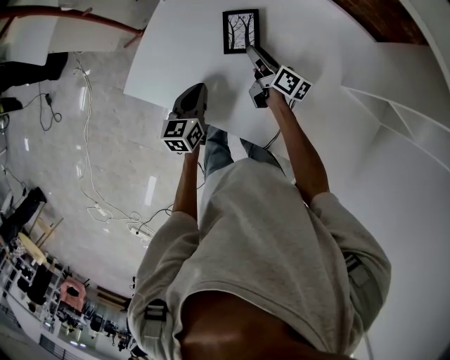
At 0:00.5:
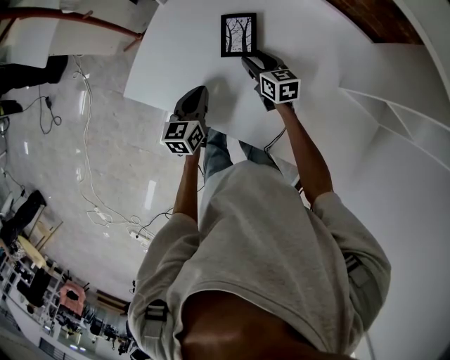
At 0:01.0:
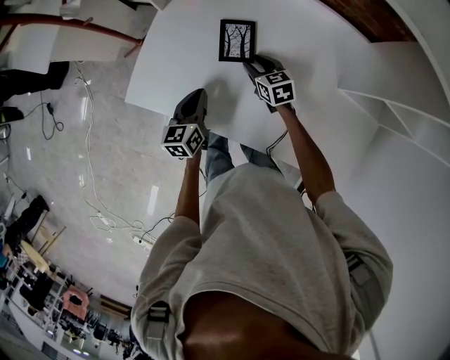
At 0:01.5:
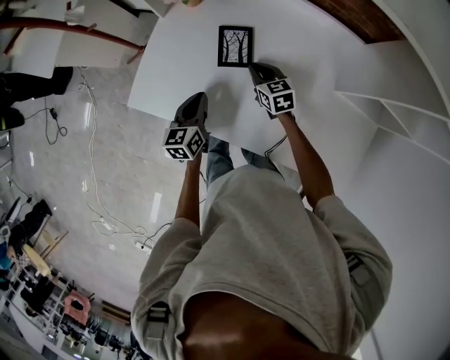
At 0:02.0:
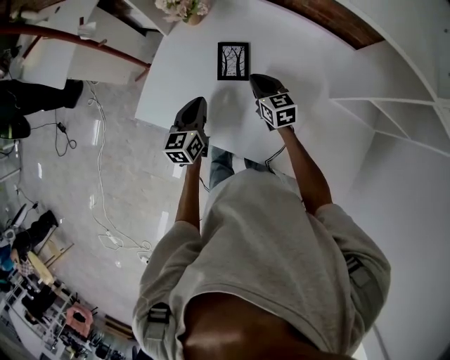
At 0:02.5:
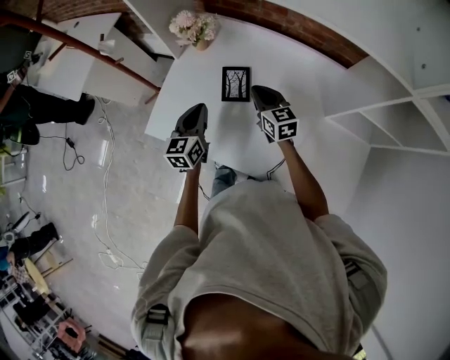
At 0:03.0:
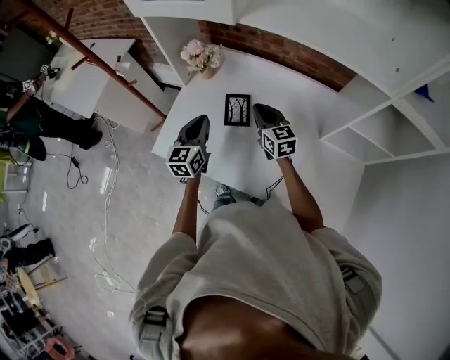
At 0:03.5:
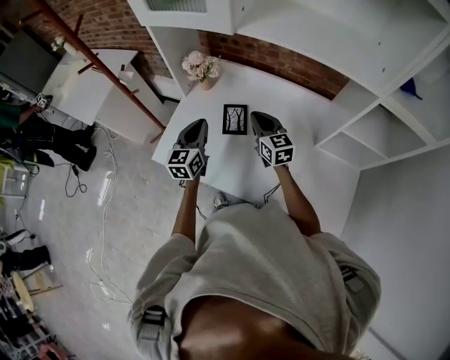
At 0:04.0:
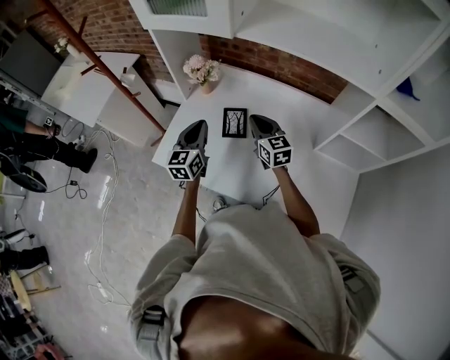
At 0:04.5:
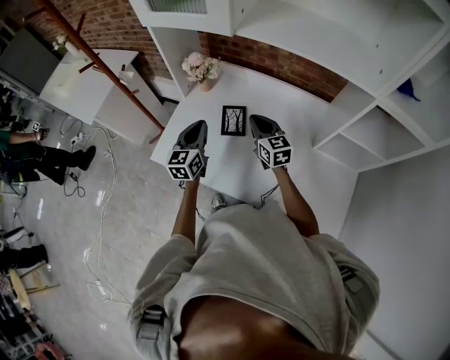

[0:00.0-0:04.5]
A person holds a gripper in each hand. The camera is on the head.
0:00.0 to 0:02.0: The left gripper travels upward by about 5 cm.
0:02.0 to 0:04.5: The left gripper is displaced upward by about 15 cm.

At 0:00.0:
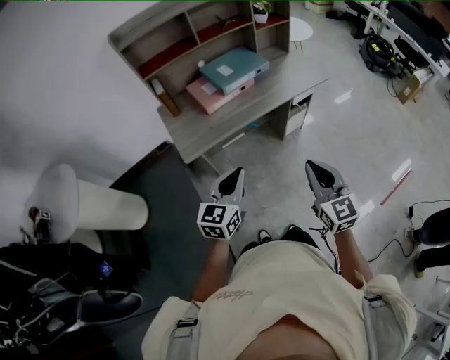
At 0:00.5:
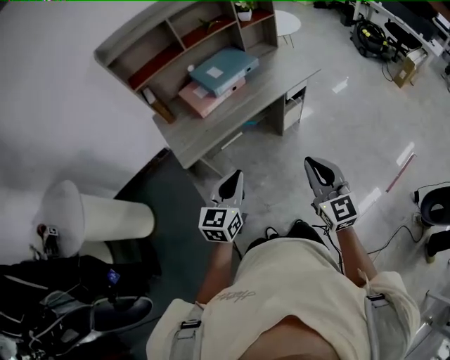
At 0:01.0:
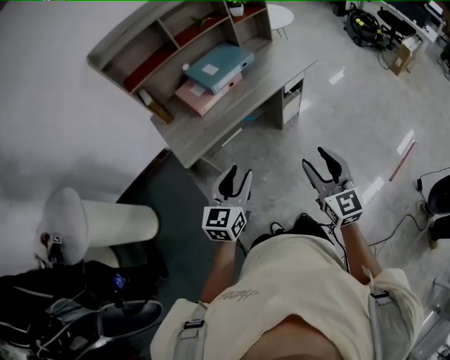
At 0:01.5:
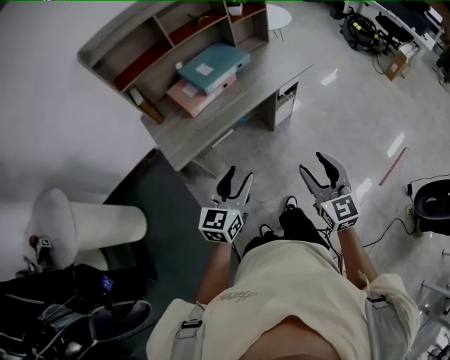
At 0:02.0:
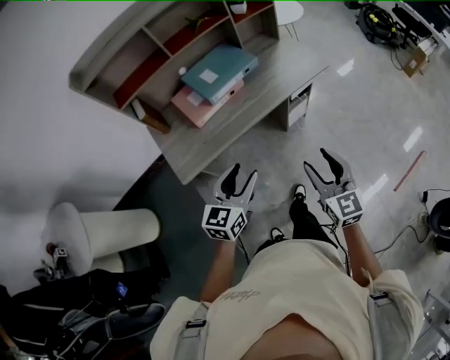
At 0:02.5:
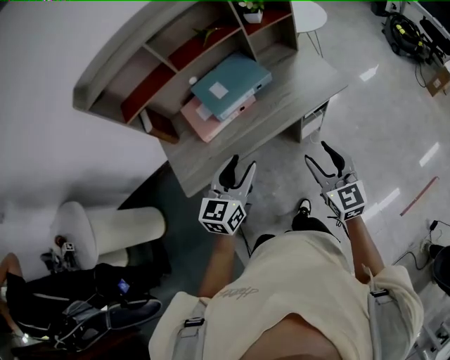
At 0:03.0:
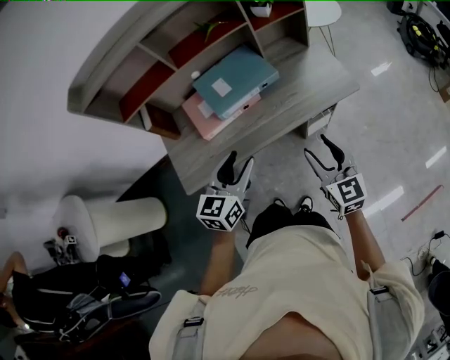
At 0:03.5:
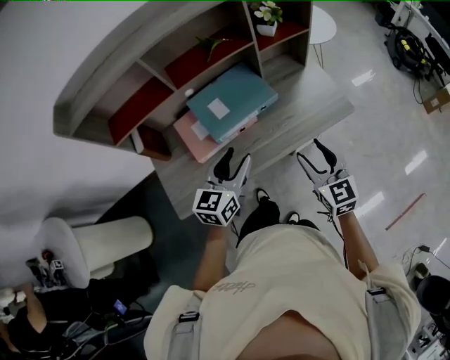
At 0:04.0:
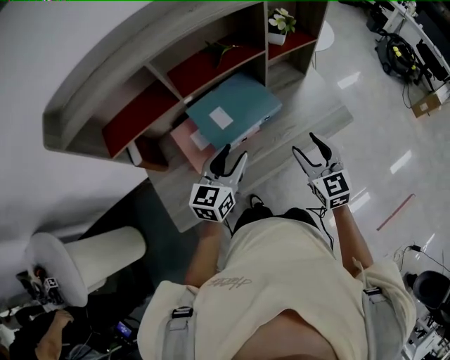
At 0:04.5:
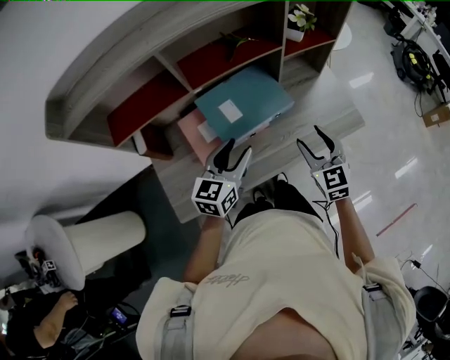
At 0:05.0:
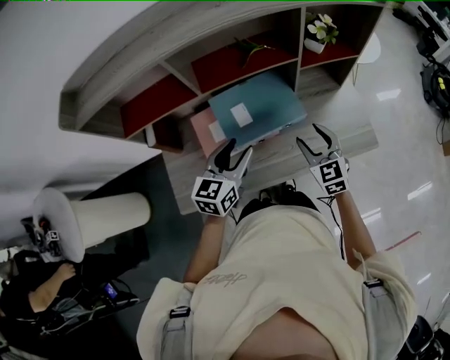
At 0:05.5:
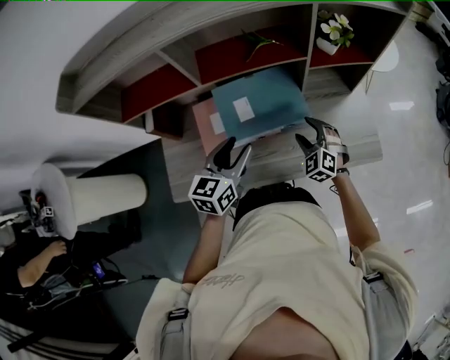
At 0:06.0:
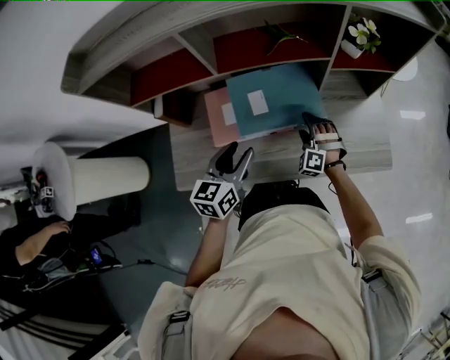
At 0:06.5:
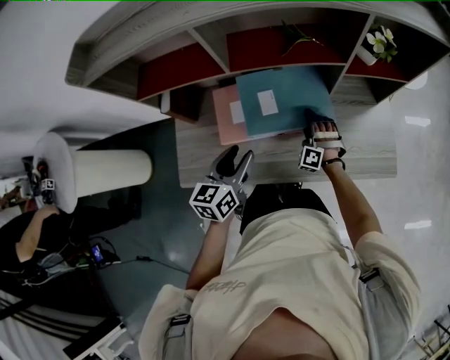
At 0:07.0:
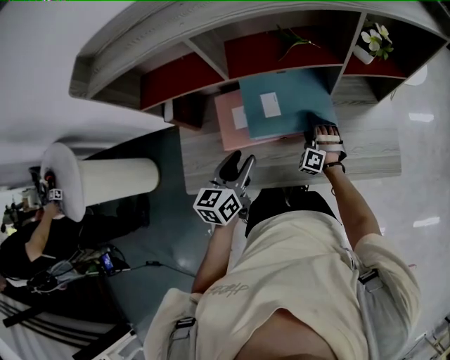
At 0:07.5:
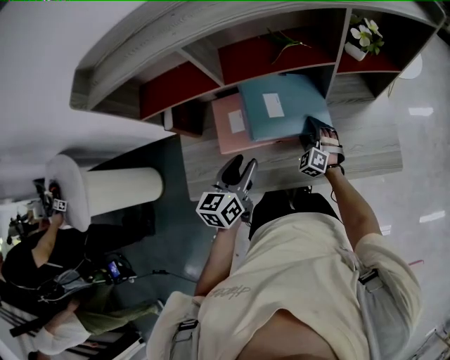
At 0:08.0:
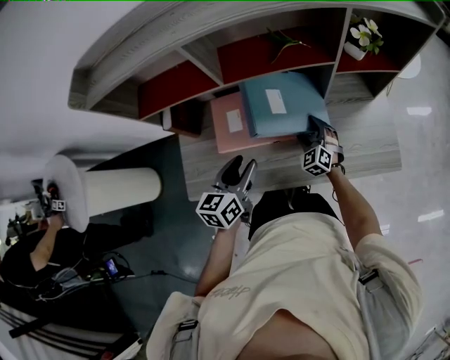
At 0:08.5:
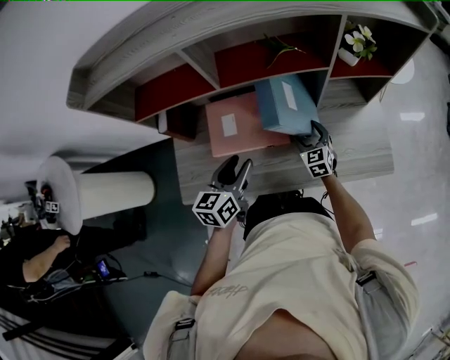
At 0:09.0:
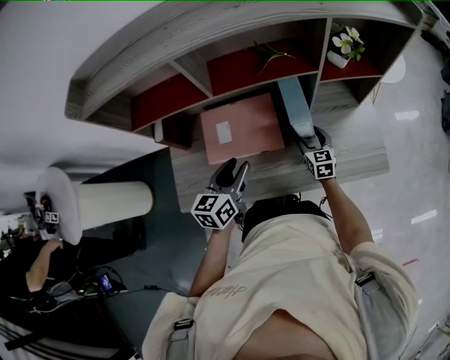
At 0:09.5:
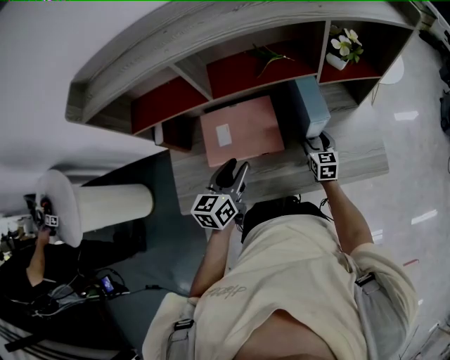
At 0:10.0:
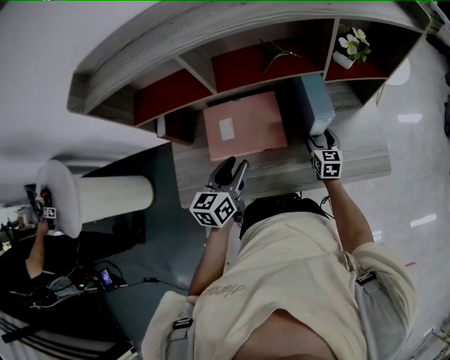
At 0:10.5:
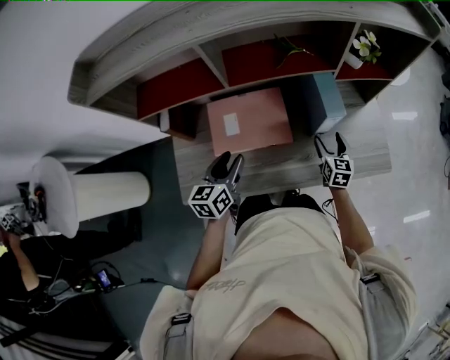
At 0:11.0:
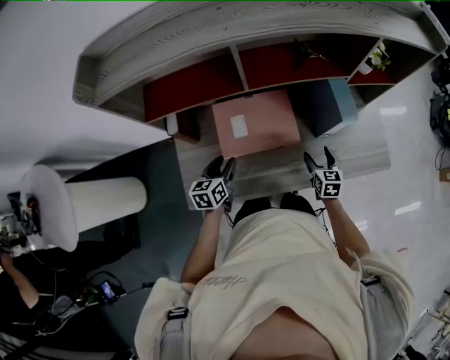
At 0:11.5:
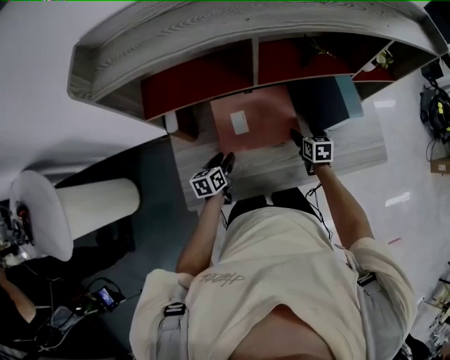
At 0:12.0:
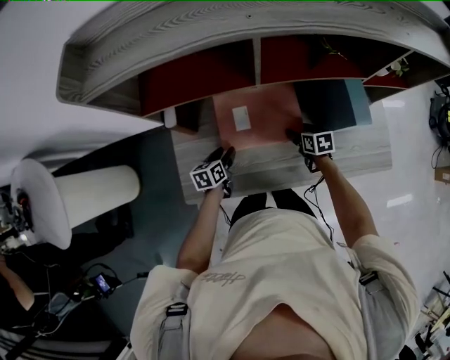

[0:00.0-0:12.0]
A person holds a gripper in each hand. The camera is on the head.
0:00.0 to 0:02.0: Both grippers move forward and to the right, approximately 10 cm. The left gripper opens its fingers. Meanwhile the right gripper opens.
0:02.0 to 0:04.0: The two grippers go approximately 35 cm forward.
0:04.0 to 0:06.0: The left gripper rotates about 30 degrees; the right gripper shifts roughly 25 cm downward and forward, and rotates around the line of its fingers by about 70 degrees, counterclockwise from behind.
0:06.0 to 0:08.0: The right gripper rotates roughly 30 degrees.
0:08.0 to 0:10.0: The right gripper moves to the right, roughly 10 cm, and rolls clockwise, seen from behind, by approximately 50 degrees.
0:10.0 to 0:12.0: The right gripper shifts about 15 cm to the left, and rotates roughly 30 degrees. The left gripper moves downward and to the left, some 25 cm, and rotates approximately 30 degrees.

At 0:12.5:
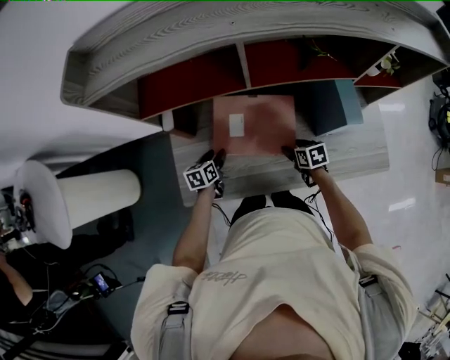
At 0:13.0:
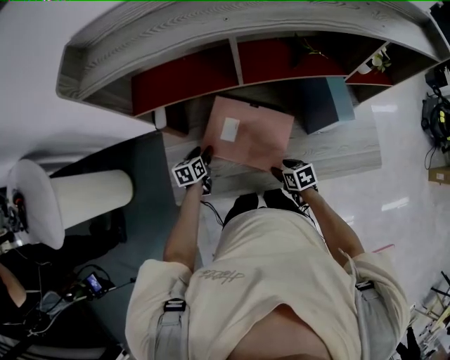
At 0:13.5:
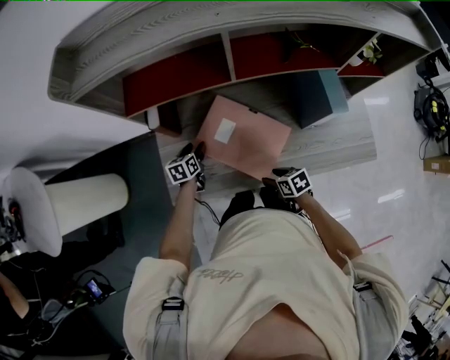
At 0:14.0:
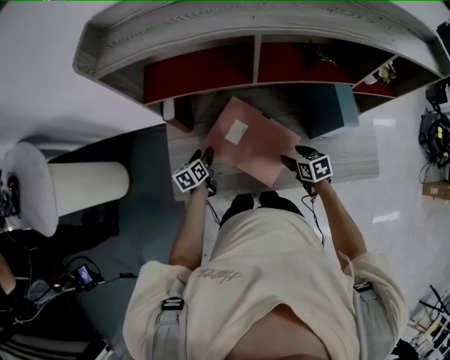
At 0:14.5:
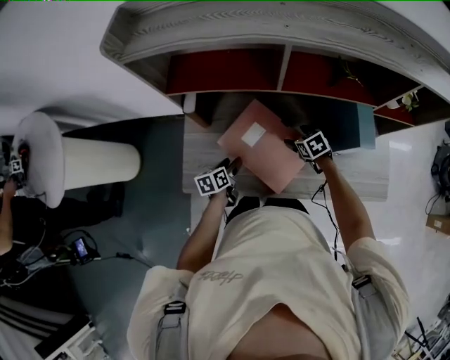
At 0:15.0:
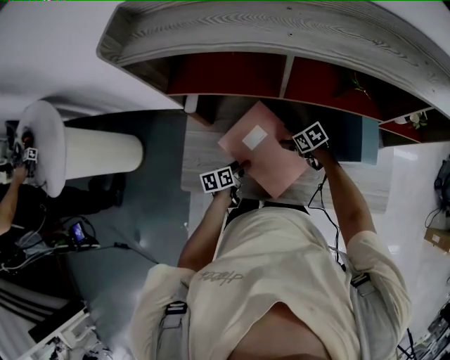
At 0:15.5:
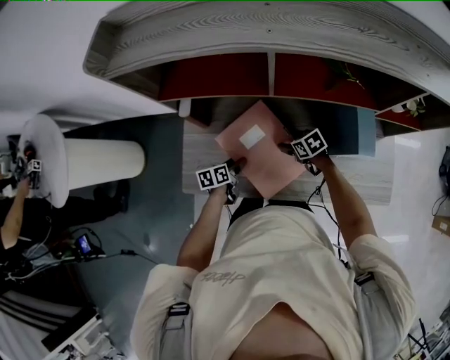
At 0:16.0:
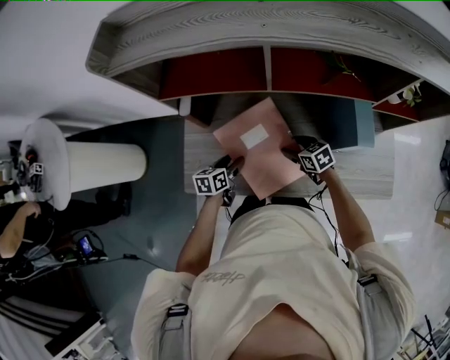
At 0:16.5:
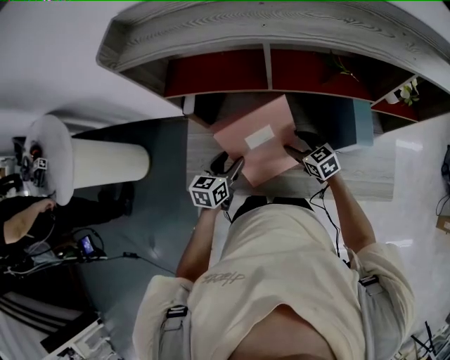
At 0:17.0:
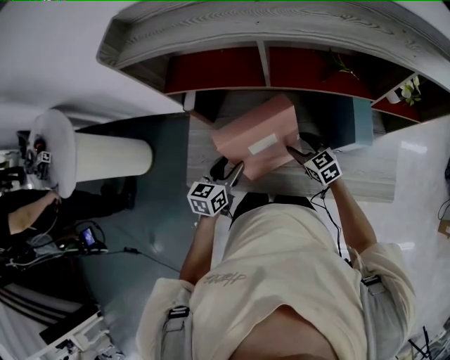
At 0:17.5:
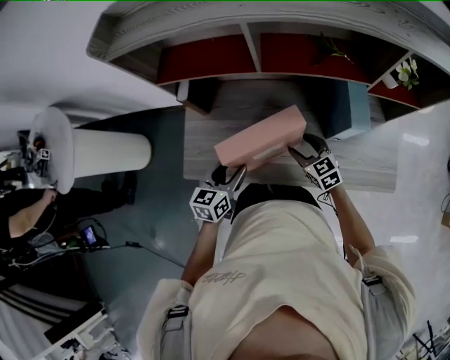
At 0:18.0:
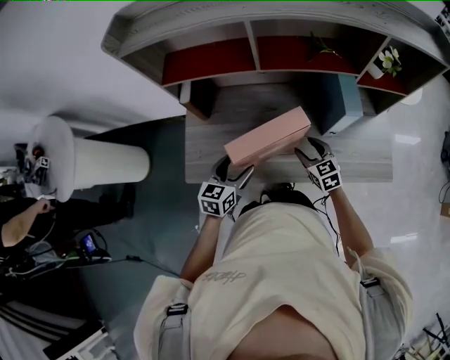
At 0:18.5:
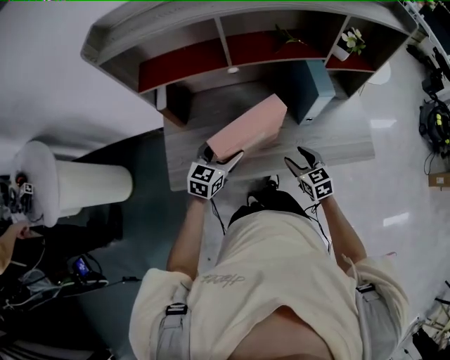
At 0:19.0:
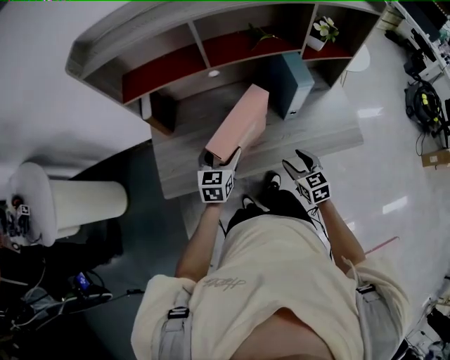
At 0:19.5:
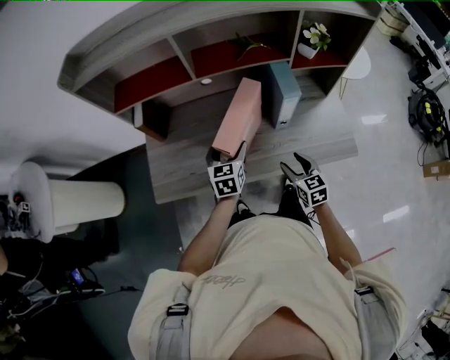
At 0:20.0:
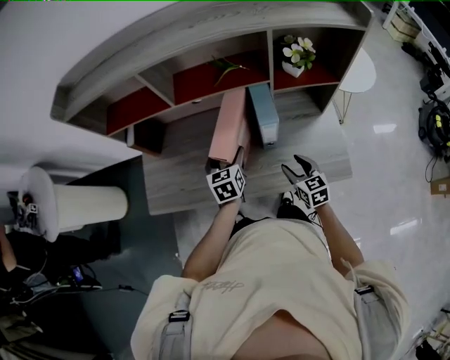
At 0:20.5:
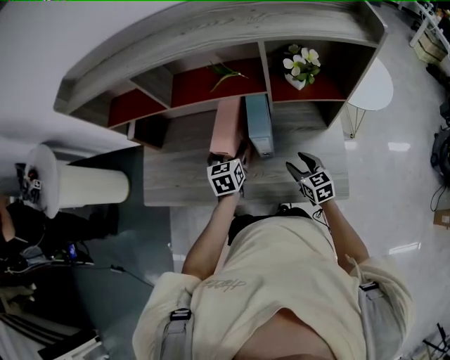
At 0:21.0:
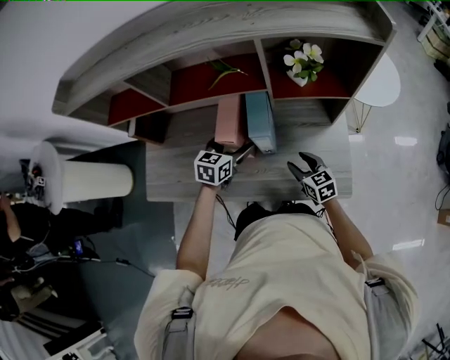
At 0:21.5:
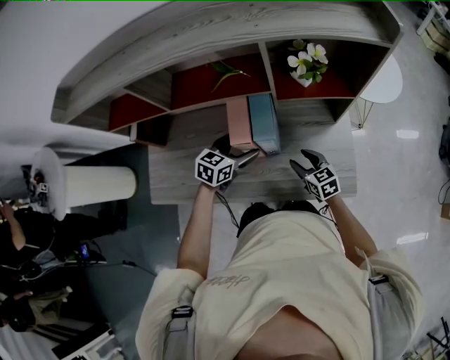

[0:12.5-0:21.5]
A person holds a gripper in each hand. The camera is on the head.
0:12.5 to 0:14.5: The left gripper moves backward, approximately 5 cm. Meanwhile the right gripper shifts some 10 cm forward, and changes its angle by roughly 30 degrees.
0:14.5 to 0:17.0: The left gripper travels upward by roughly 15 cm, and swivels approximately 30 degrees, while the right gripper shifts approximately 10 cm upward, and rotates about 30 degrees.
0:17.0 to 0:19.5: The right gripper goes roughly 20 cm backward and to the right, and swivels approximately 30 degrees; the left gripper goes about 15 cm to the right.
0:19.5 to 0:21.5: The two grippers go about 15 cm to the right and forward. The left gripper turns by about 30 degrees.

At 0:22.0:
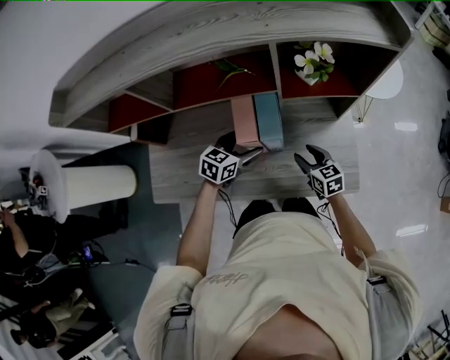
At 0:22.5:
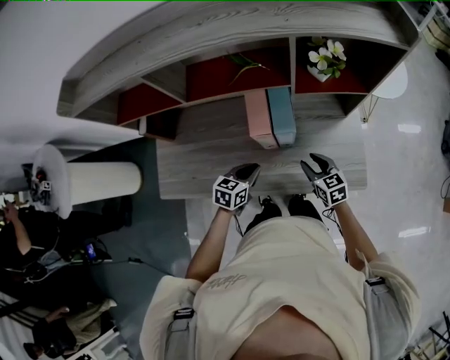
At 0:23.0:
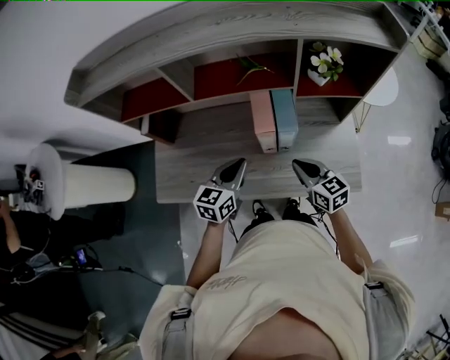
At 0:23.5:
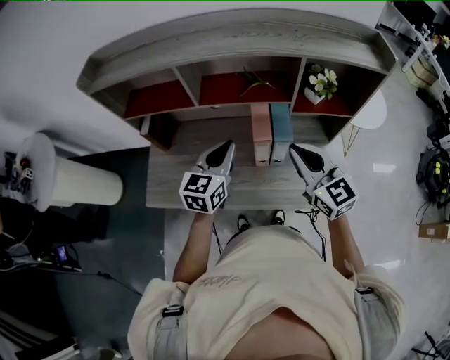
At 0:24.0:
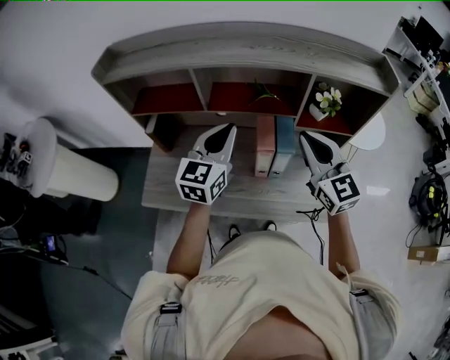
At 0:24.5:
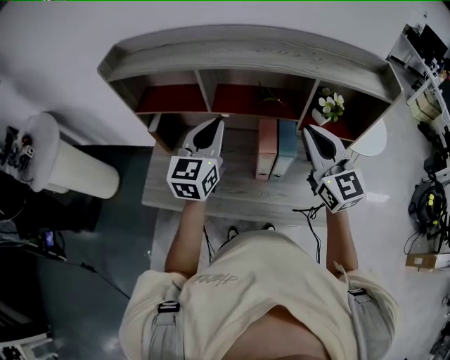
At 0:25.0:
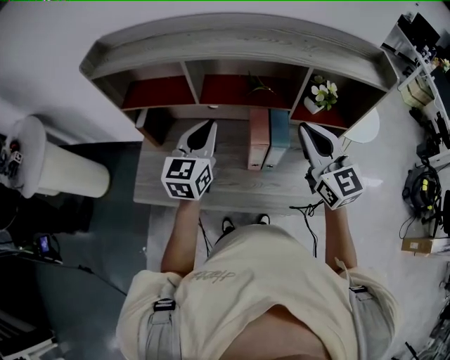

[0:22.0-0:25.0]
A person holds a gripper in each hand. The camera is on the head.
0:22.0 to 0:23.5: The right gripper shifts approximately 30 cm upward, changes its angle by approximately 30 degrees, and closes up; the left gripper travels upward and to the left by approximately 20 cm, swivels approximately 30 degrees, and closes up.
0:23.5 to 0:25.0: Both grippers move upward, approximately 5 cm.
